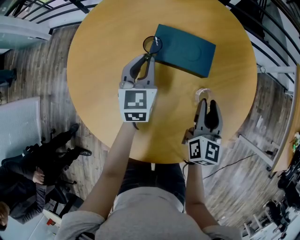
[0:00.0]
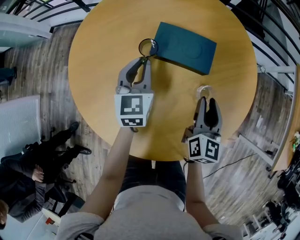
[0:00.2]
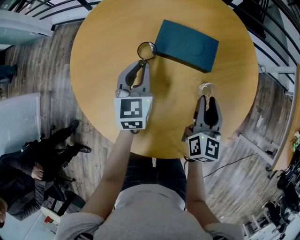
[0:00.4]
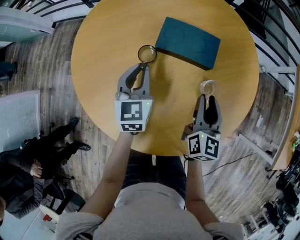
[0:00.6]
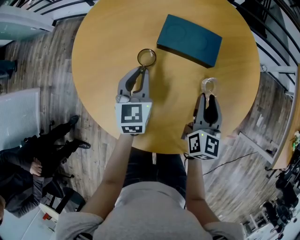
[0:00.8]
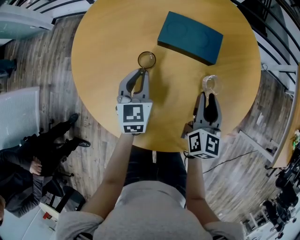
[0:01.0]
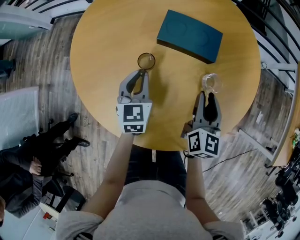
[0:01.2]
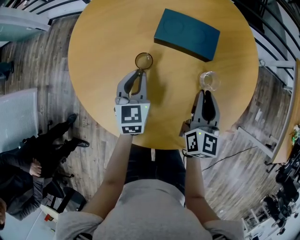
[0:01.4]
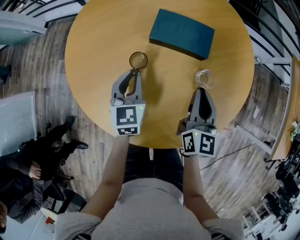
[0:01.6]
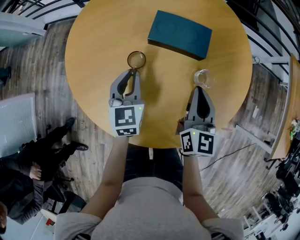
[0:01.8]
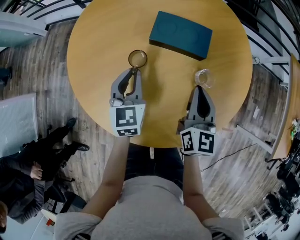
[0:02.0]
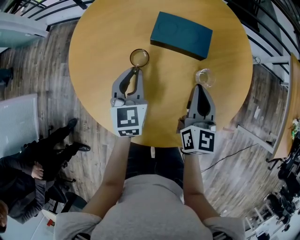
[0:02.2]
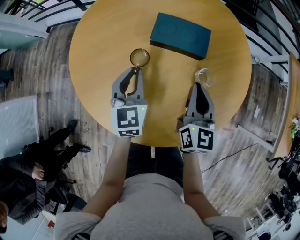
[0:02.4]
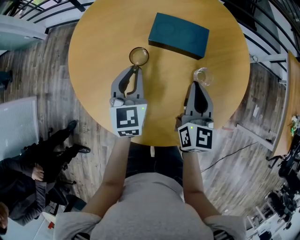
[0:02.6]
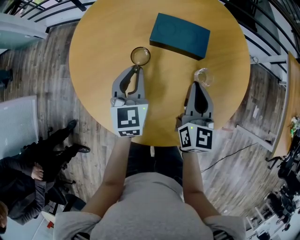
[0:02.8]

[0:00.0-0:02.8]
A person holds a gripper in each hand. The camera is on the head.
0:00.0 to 0:01.4: The right gripper changes place by some 5 cm; the left gripper travels backward by roughly 10 cm.
0:01.4 to 0:02.8: The left gripper is displaced upward by roughly 10 cm; the right gripper changes place by roughly 5 cm.

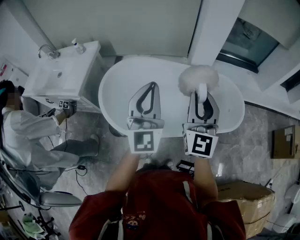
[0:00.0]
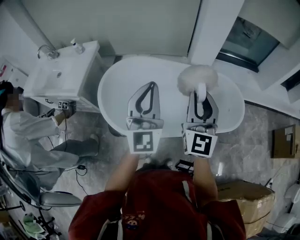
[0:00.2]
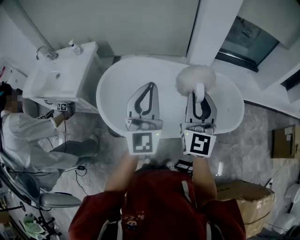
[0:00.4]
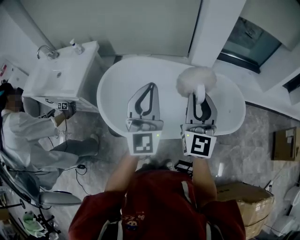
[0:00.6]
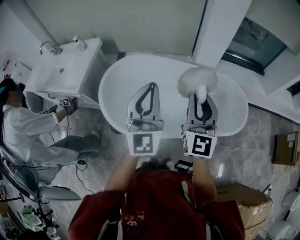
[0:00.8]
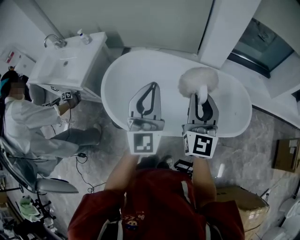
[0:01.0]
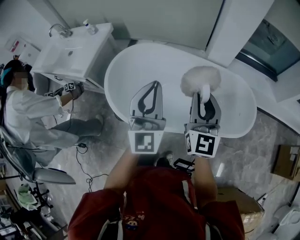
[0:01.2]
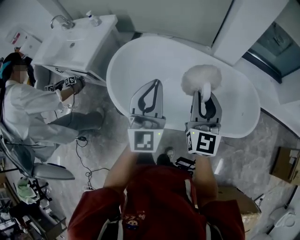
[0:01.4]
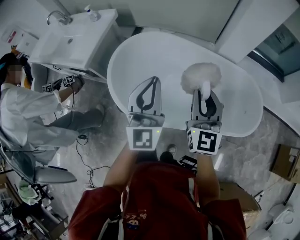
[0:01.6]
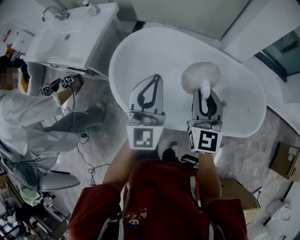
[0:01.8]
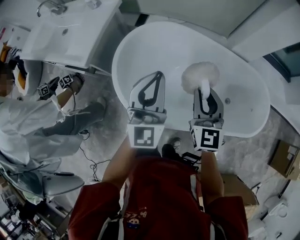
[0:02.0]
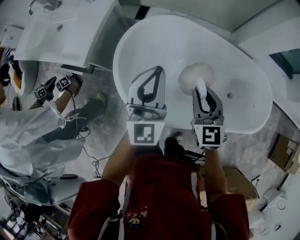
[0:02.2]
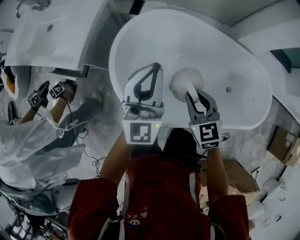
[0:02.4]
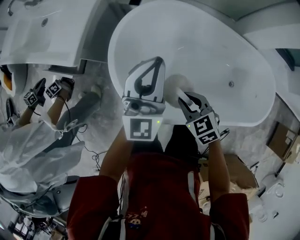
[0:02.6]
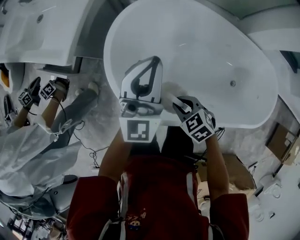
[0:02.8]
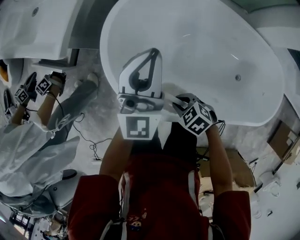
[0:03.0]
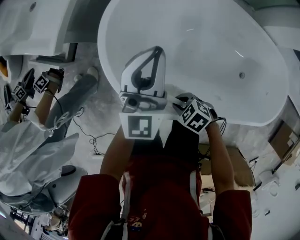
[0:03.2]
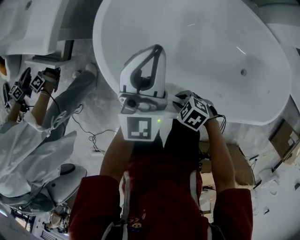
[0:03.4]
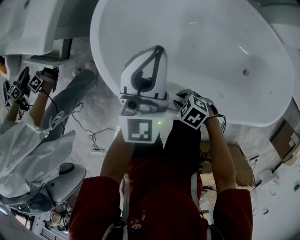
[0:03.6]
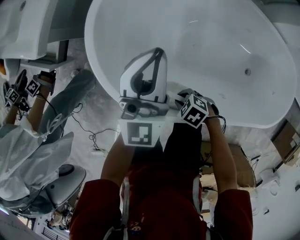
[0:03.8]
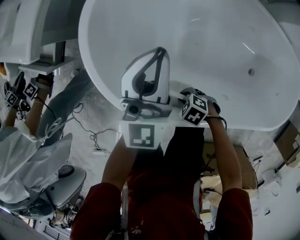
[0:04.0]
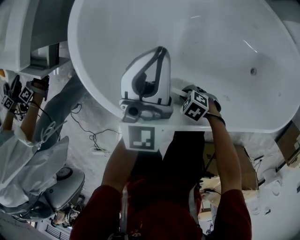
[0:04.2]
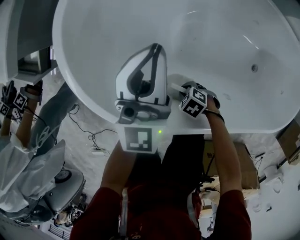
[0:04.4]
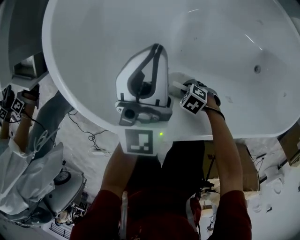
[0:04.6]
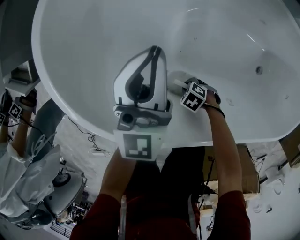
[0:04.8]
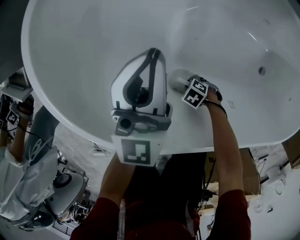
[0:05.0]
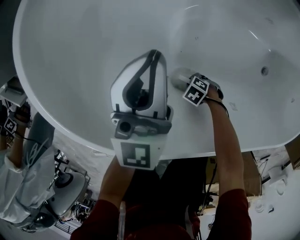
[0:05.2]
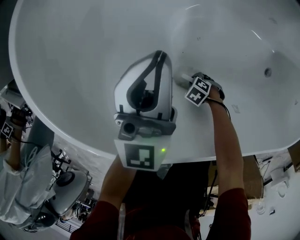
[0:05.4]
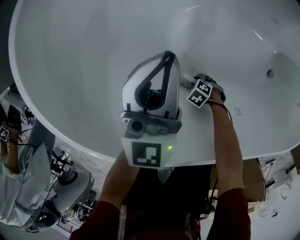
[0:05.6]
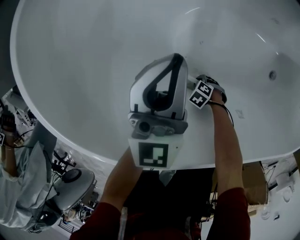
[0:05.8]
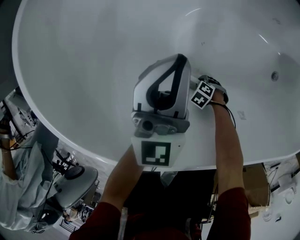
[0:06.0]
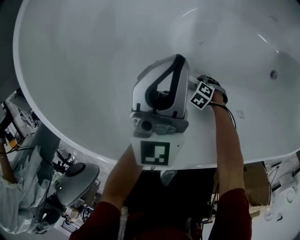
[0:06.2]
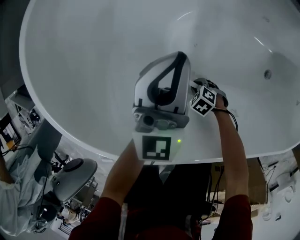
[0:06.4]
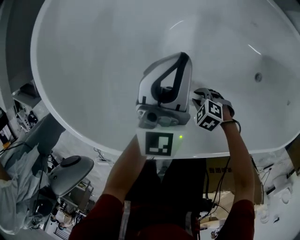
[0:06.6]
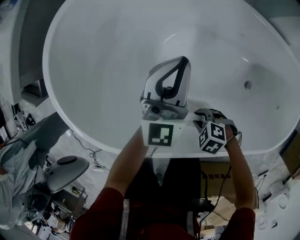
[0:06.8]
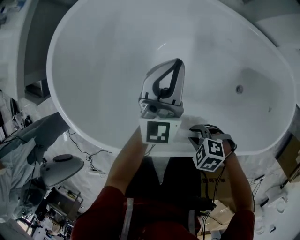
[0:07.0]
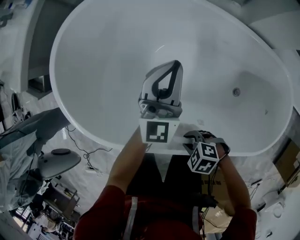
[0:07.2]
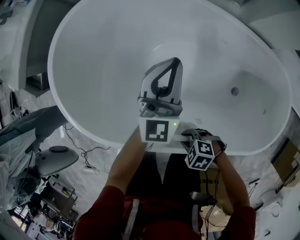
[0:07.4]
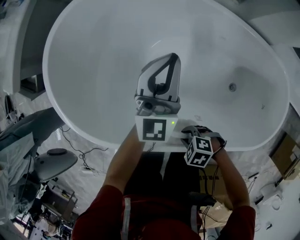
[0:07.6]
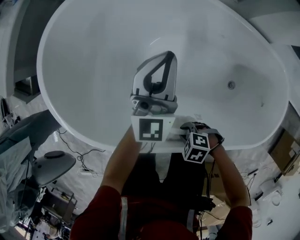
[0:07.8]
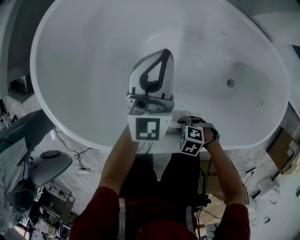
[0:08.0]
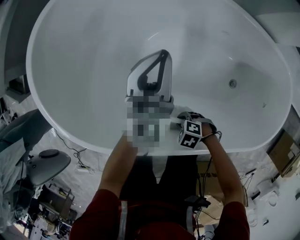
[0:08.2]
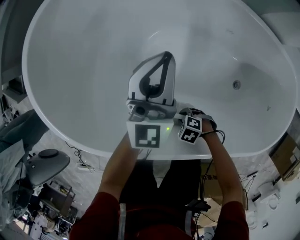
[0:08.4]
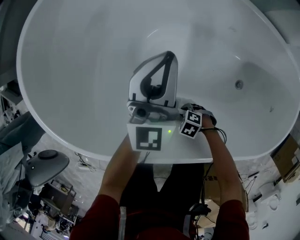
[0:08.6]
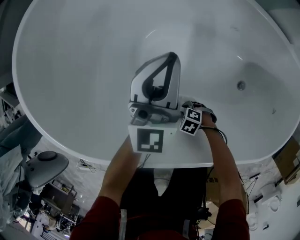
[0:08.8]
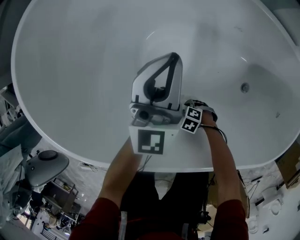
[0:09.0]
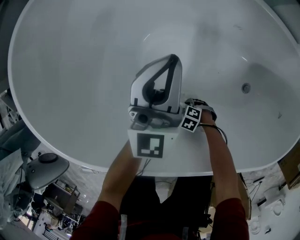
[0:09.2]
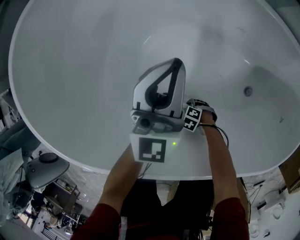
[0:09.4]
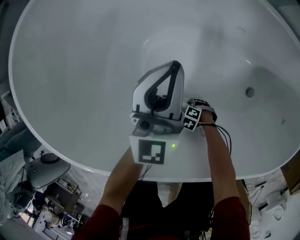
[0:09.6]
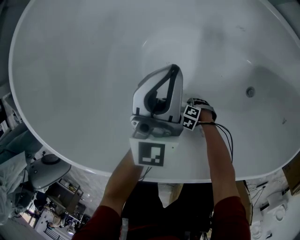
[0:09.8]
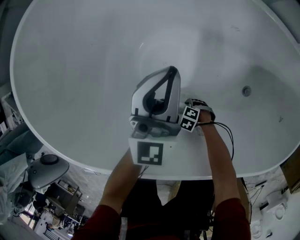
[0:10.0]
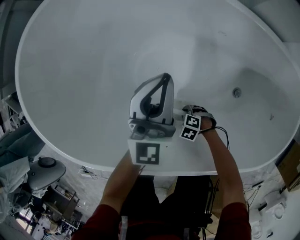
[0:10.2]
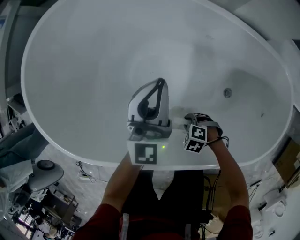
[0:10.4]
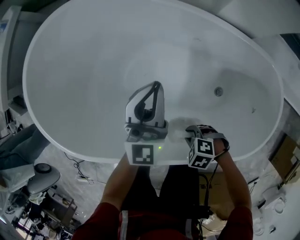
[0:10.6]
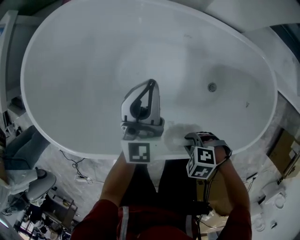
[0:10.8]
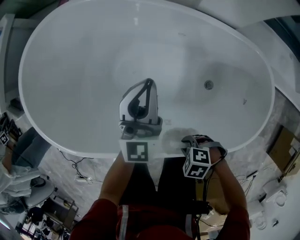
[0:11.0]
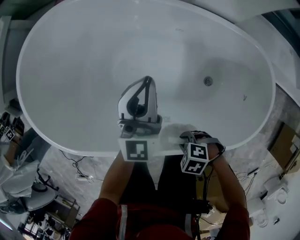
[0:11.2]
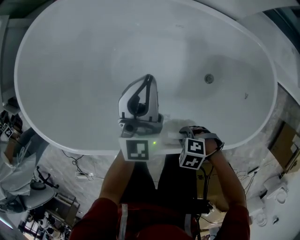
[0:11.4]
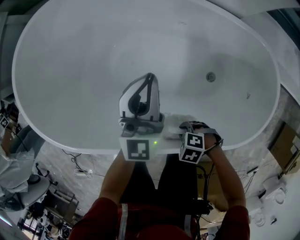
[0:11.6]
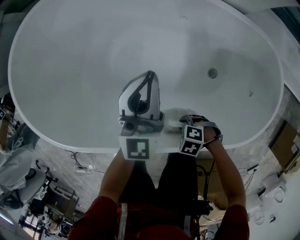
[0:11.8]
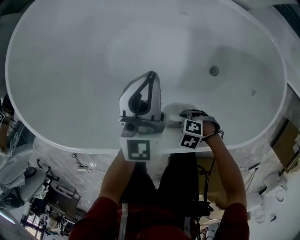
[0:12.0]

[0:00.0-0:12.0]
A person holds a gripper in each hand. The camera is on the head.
0:00.0 to 0:01.6: The right gripper travels downward and forward by approximately 15 cm. Meanwhile the left gripper moves downward, about 10 cm.
0:01.6 to 0:03.0: The right gripper shifts approximately 40 cm downward, and points its fingers roughly 60 degrees further downward, while the left gripper ends up approximately 30 cm from where it was.
0:03.0 to 0:04.4: Both grippers move downward, approximately 20 cm.
0:04.4 to 0:06.0: The left gripper shifts some 10 cm downward, while the right gripper is displaced downward by some 20 cm.
0:06.0 to 0:07.6: The right gripper travels upward by roughly 35 cm, and swivels approximately 20 degrees. The left gripper goes roughly 15 cm upward.
0:07.6 to 0:09.0: The left gripper is displaced downward by roughly 10 cm, while the right gripper travels downward by roughly 30 cm.
0:09.0 to 0:10.4: The right gripper goes about 15 cm upward, while the left gripper moves approximately 10 cm.
0:10.4 to 0:12.0: The left gripper ends up about 10 cm from where it was. Meanwhile the right gripper moves roughly 15 cm upward and comes back.

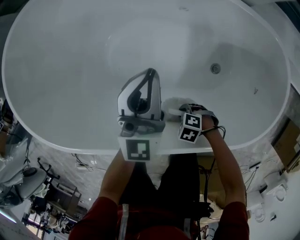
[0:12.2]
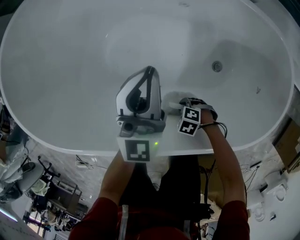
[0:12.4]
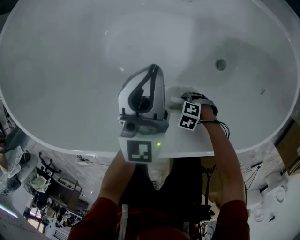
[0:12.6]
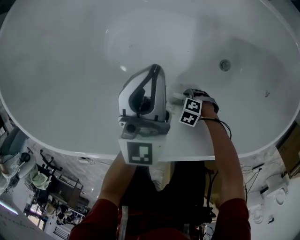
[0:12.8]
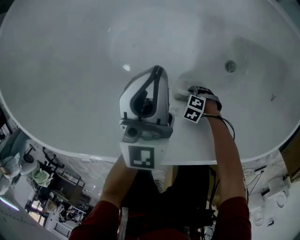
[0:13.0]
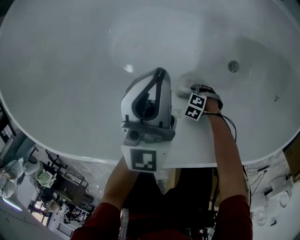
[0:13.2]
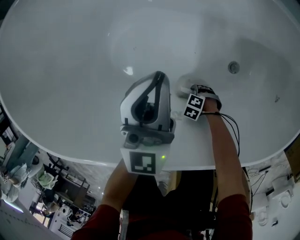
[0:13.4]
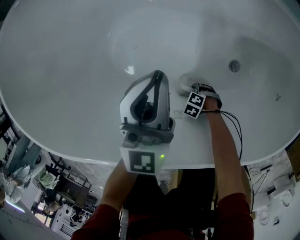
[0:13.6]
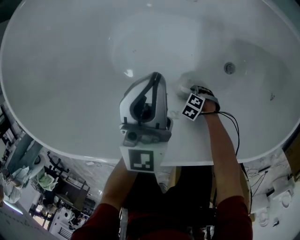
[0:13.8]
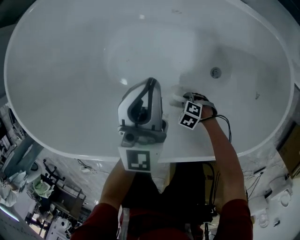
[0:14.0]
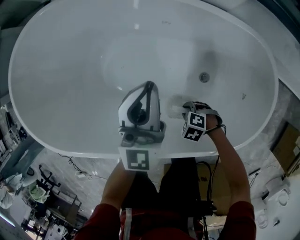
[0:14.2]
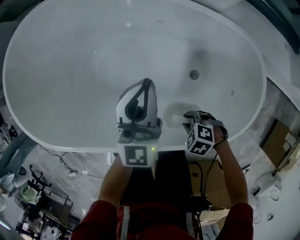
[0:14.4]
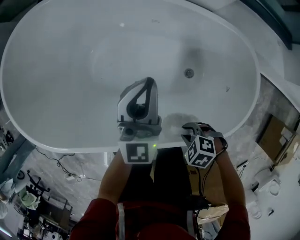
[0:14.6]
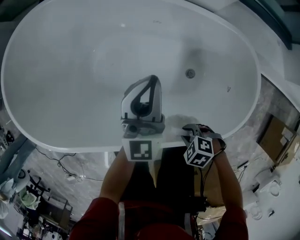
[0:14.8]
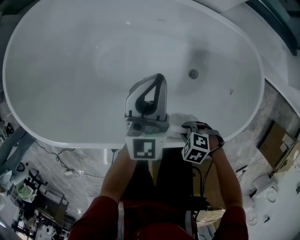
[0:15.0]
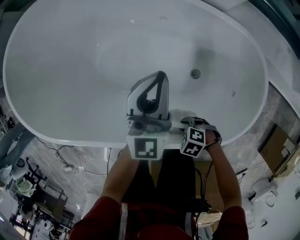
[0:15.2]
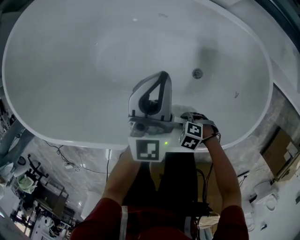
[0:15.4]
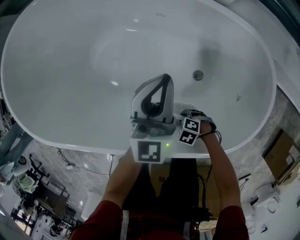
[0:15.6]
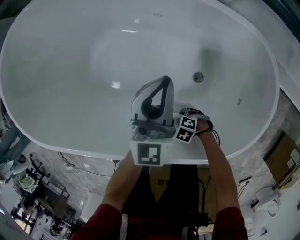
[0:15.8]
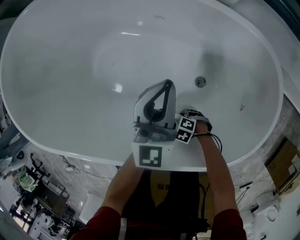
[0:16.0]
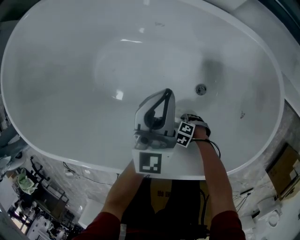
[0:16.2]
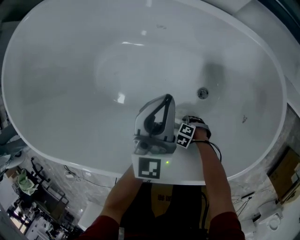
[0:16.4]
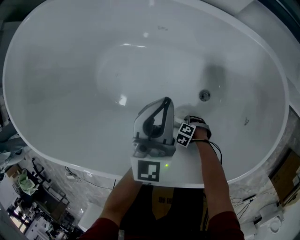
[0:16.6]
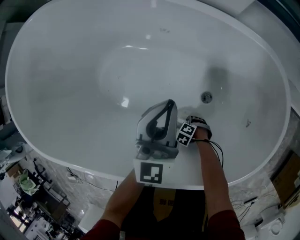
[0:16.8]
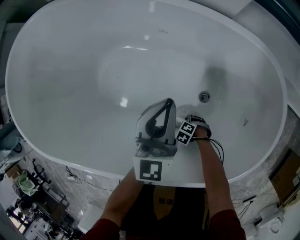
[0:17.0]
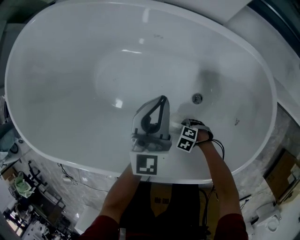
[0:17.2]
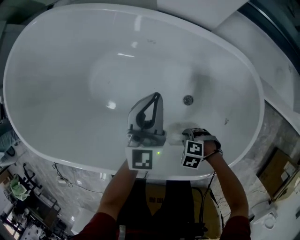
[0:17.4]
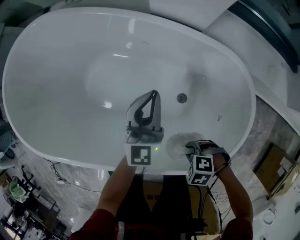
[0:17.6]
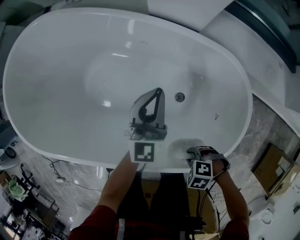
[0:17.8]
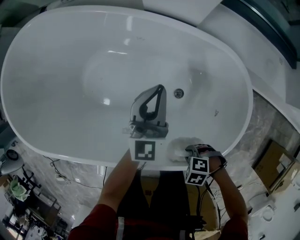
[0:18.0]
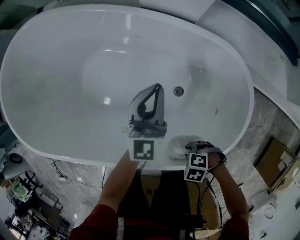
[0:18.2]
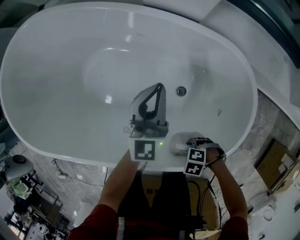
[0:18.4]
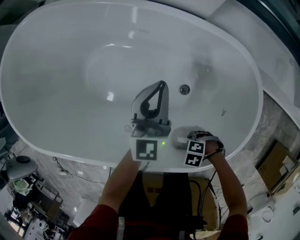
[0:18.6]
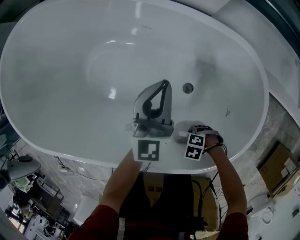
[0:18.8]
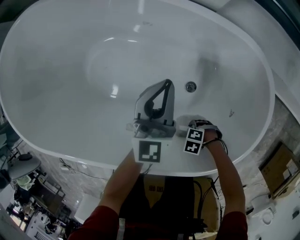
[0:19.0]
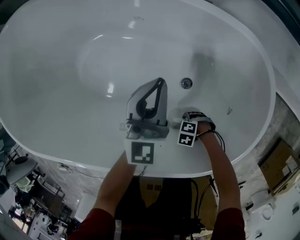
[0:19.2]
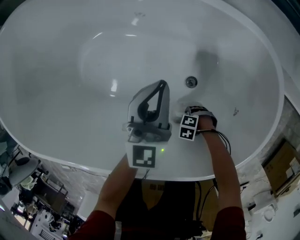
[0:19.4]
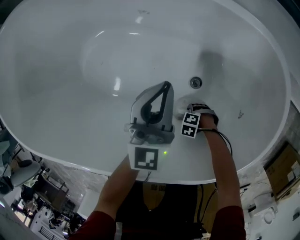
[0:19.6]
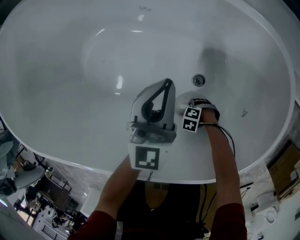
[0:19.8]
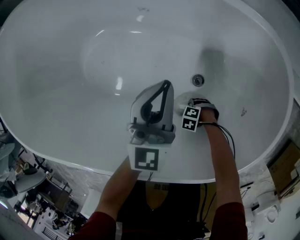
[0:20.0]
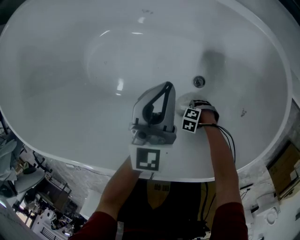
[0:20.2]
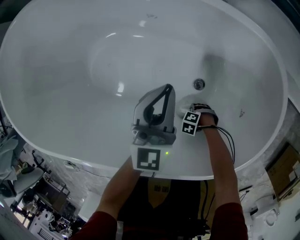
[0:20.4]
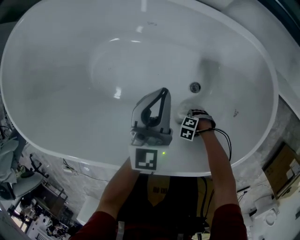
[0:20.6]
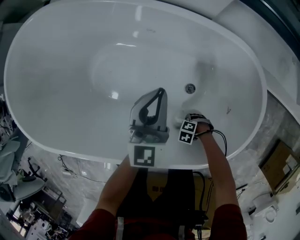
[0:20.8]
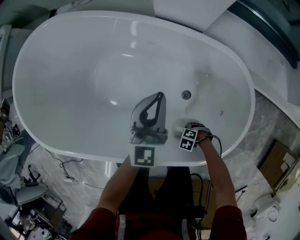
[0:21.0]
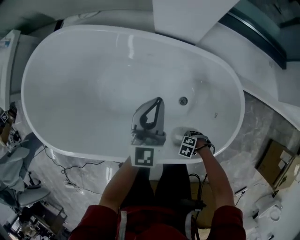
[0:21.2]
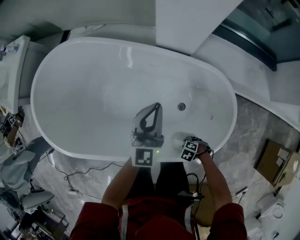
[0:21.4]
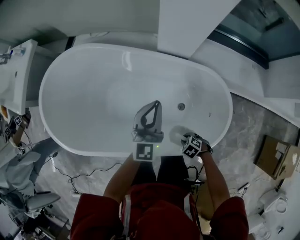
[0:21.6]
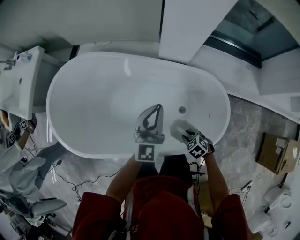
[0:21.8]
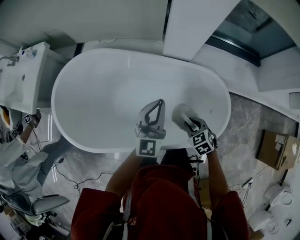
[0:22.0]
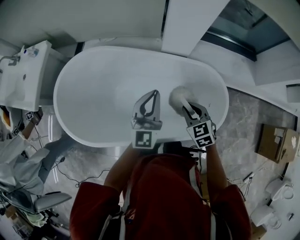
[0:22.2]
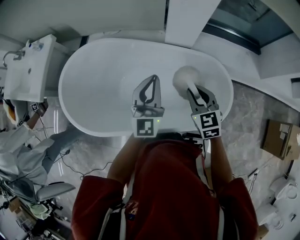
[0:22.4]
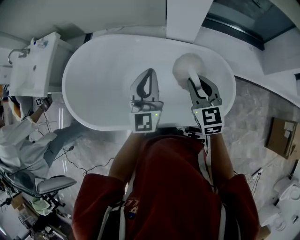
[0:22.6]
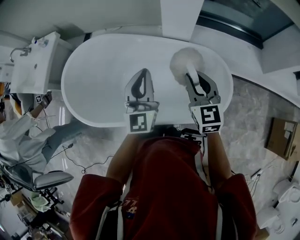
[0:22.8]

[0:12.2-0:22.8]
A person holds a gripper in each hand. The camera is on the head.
0:12.2 to 0:13.8: The right gripper moves downward, roughly 20 cm. Meanwhile the left gripper ends up about 5 cm from where it was.
0:13.8 to 0:15.2: The right gripper shifts about 25 cm upward, while the left gripper goes approximately 10 cm upward.
0:15.2 to 0:16.8: The left gripper shifts roughly 10 cm downward, while the right gripper moves downward, roughly 30 cm.
0:16.8 to 0:18.2: The left gripper ends up some 10 cm from where it was. The right gripper goes some 30 cm upward.
0:18.2 to 0:19.8: The right gripper moves downward, some 30 cm. Meanwhile the left gripper heads downward, covering approximately 10 cm.
0:19.8 to 0:21.2: Both grippers travel together upward, about 20 cm.
0:21.2 to 0:22.8: The left gripper goes some 25 cm upward. The right gripper shifts roughly 60 cm upward, and tilts its fingers about 60 degrees upward.
